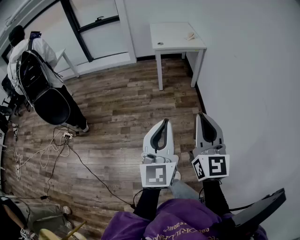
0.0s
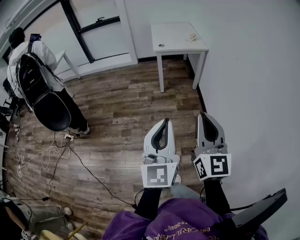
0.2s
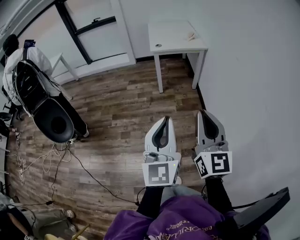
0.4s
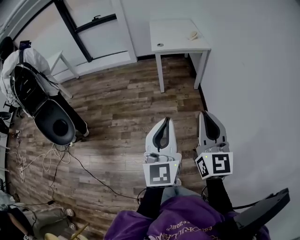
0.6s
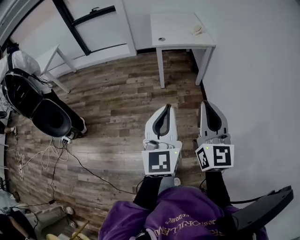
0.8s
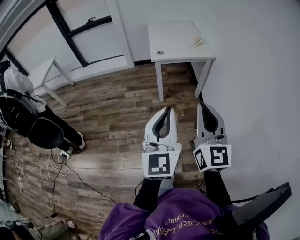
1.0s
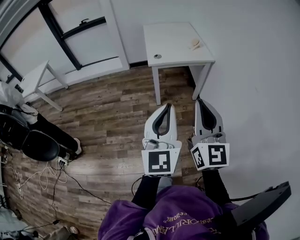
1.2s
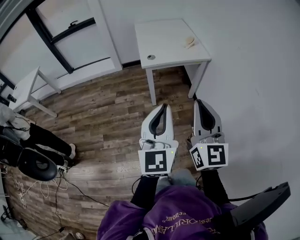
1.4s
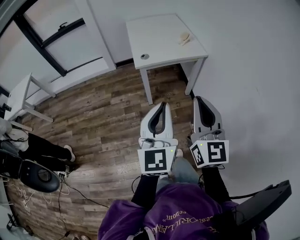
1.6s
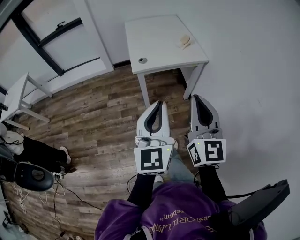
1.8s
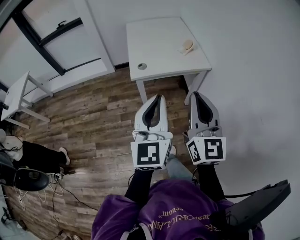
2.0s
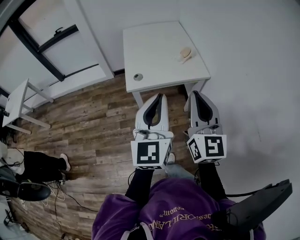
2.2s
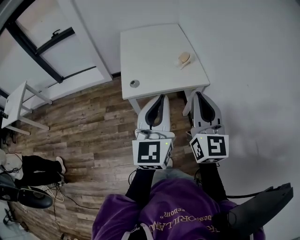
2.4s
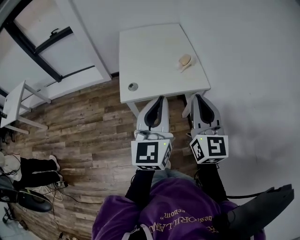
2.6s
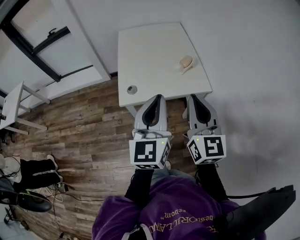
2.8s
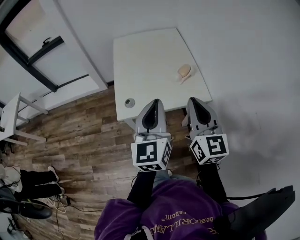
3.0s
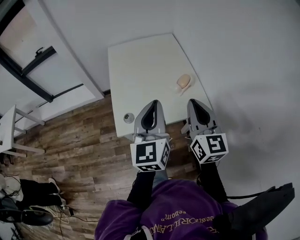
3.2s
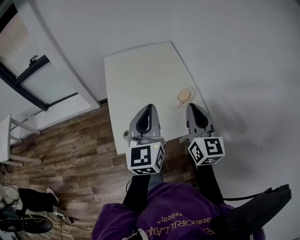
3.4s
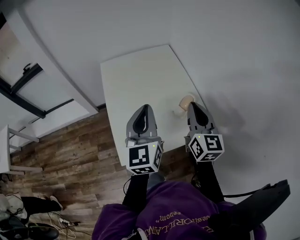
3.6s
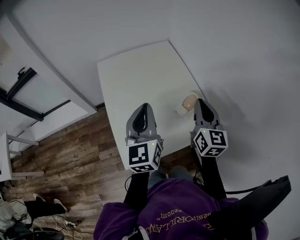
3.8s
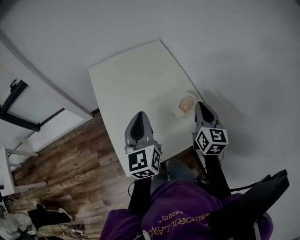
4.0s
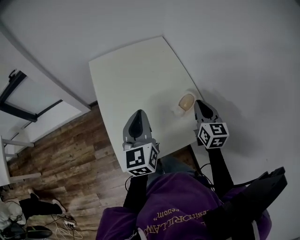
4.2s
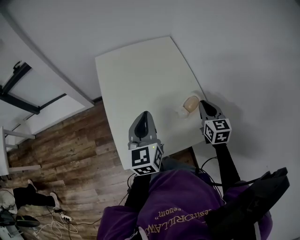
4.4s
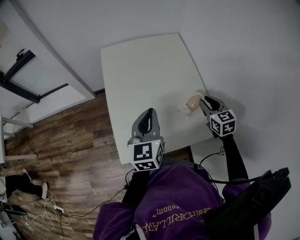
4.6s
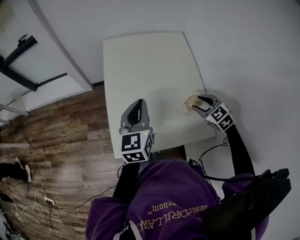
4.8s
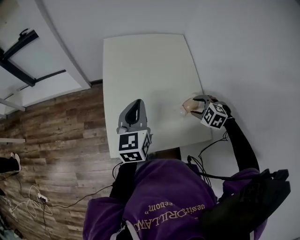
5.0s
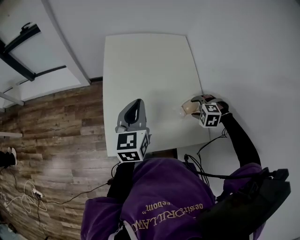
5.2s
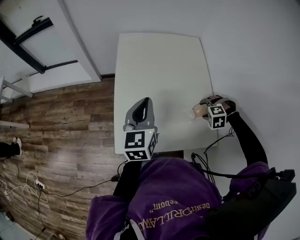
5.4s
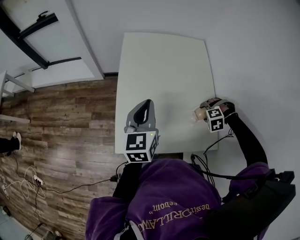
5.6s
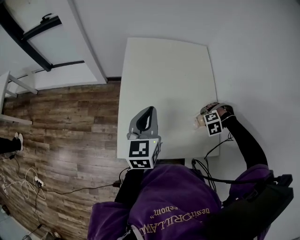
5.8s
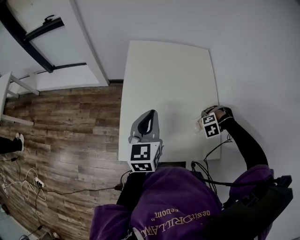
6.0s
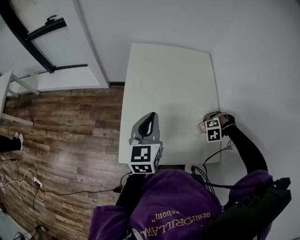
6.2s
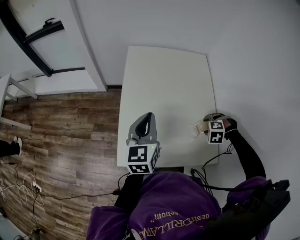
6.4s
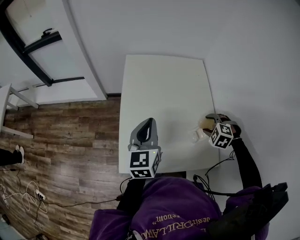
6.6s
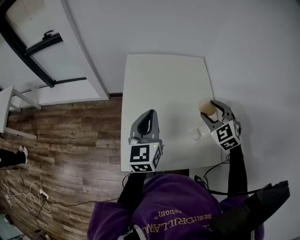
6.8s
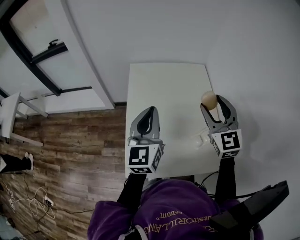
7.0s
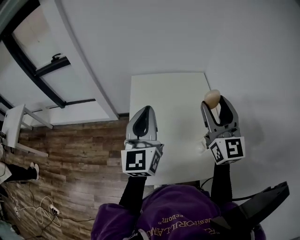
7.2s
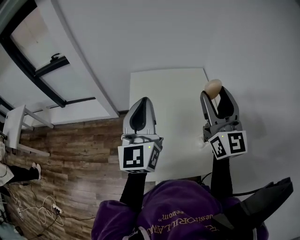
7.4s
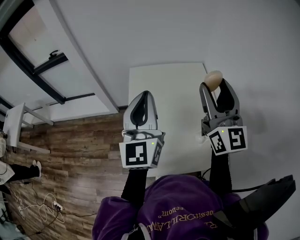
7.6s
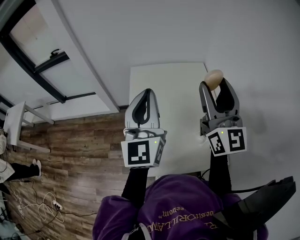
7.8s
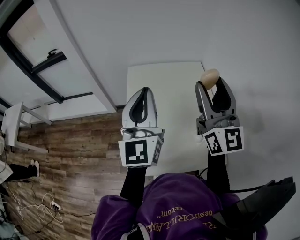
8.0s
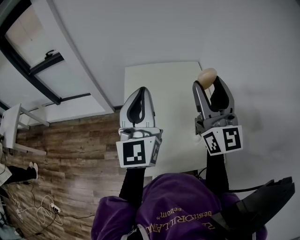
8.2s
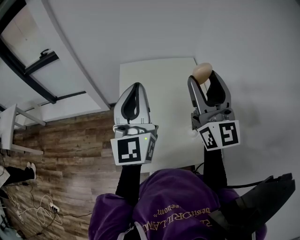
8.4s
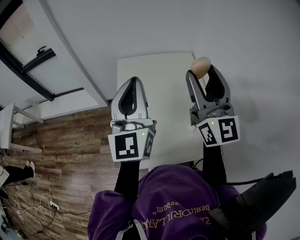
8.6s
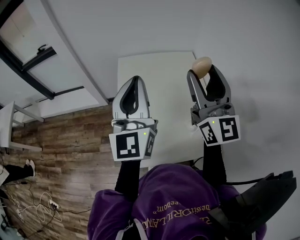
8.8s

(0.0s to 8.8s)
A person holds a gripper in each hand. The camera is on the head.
0.0s - 1.4s: The pair of grippers is taken forward, approximately 40 cm.
1.4s - 3.0s: Both grippers are carried forward, approximately 50 cm.
3.0s - 4.4s: The grippers both shift forward by some 30 cm. The right gripper turns by about 30 degrees.
4.4s - 5.8s: The left gripper moves some 5 cm. Meanwhile the right gripper goes some 15 cm downward, tips its fingers downward by roughly 50 degrees, and opens its fingers.
5.8s - 7.4s: The left gripper travels upward by some 20 cm, and changes its angle by roughly 30 degrees. Meanwhile the right gripper is displaced upward by about 40 cm, and angles its fingers upward, by roughly 100 degrees.
7.4s - 8.8s: The grippers make only small movements.

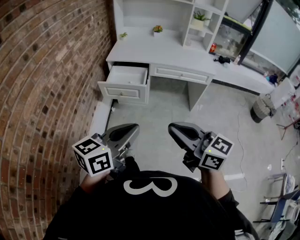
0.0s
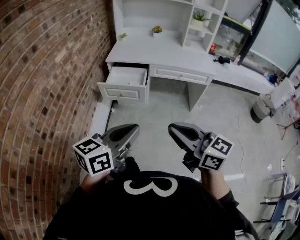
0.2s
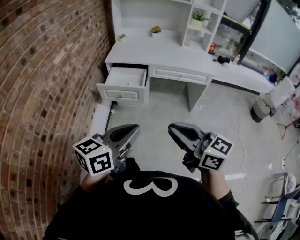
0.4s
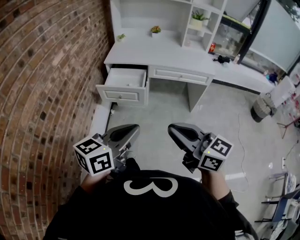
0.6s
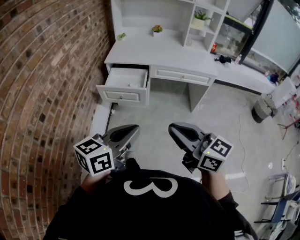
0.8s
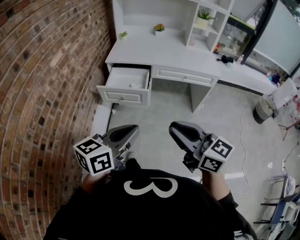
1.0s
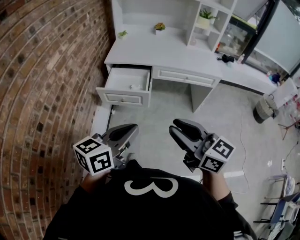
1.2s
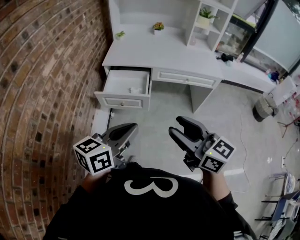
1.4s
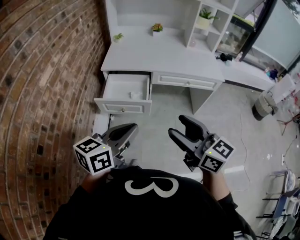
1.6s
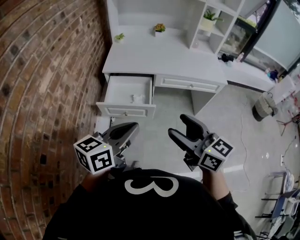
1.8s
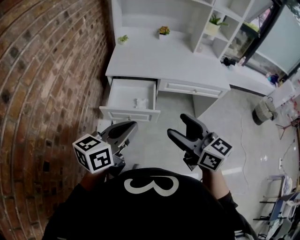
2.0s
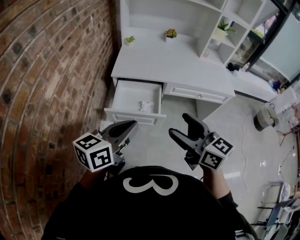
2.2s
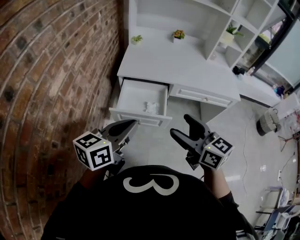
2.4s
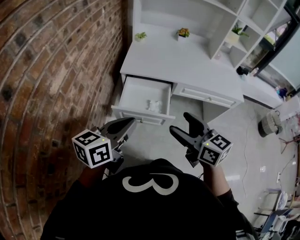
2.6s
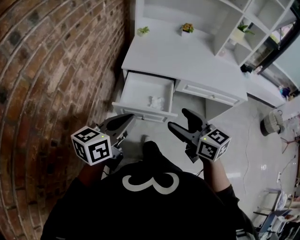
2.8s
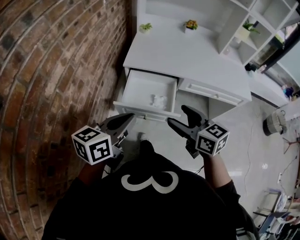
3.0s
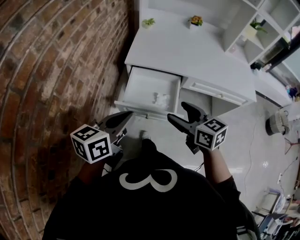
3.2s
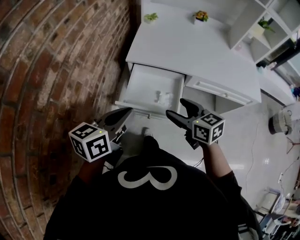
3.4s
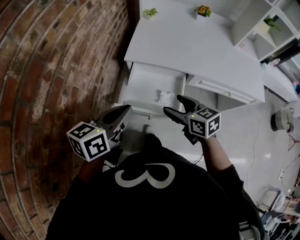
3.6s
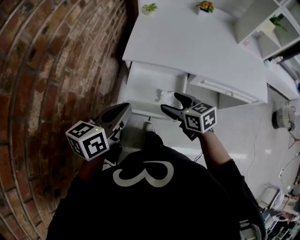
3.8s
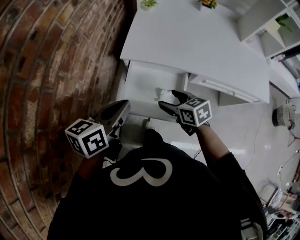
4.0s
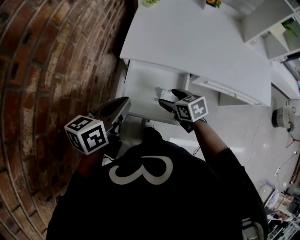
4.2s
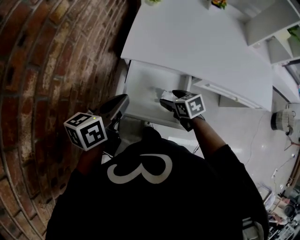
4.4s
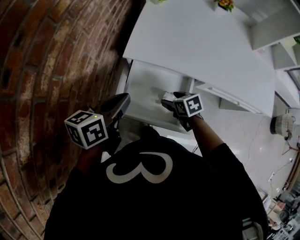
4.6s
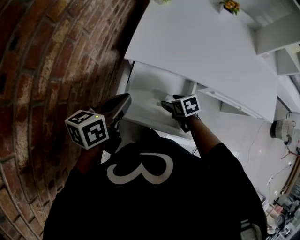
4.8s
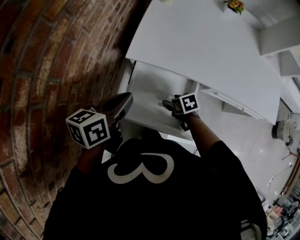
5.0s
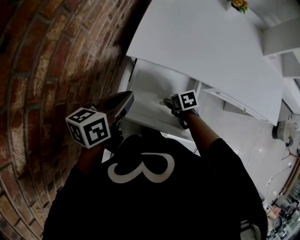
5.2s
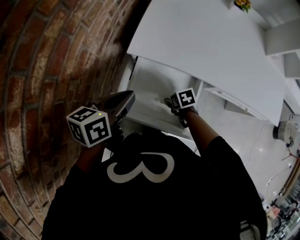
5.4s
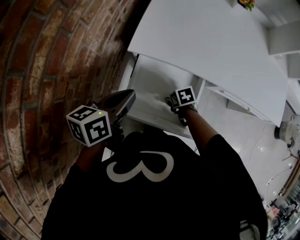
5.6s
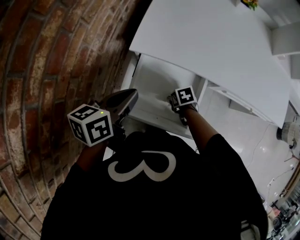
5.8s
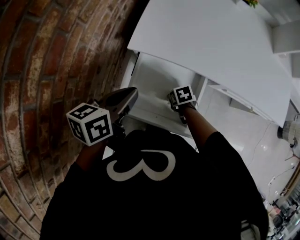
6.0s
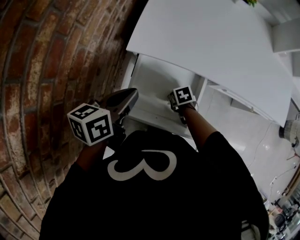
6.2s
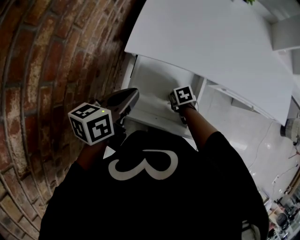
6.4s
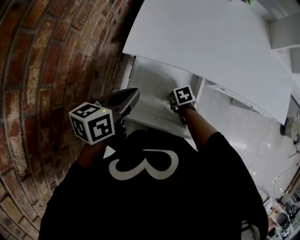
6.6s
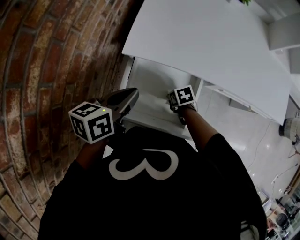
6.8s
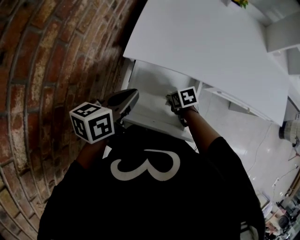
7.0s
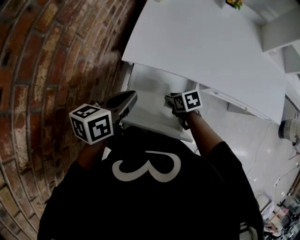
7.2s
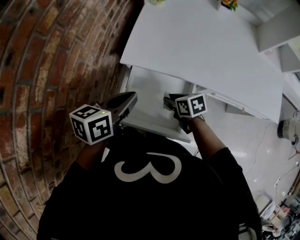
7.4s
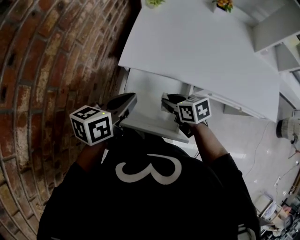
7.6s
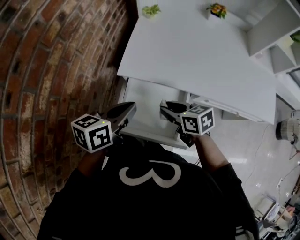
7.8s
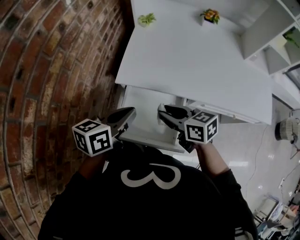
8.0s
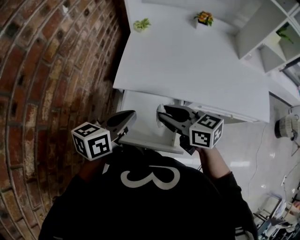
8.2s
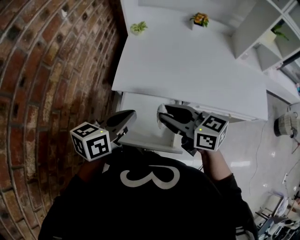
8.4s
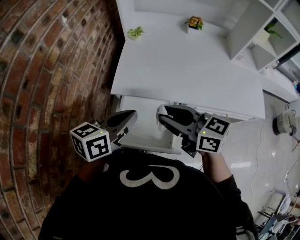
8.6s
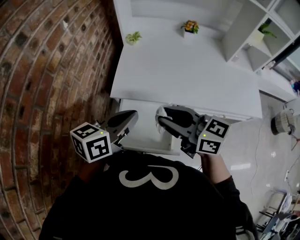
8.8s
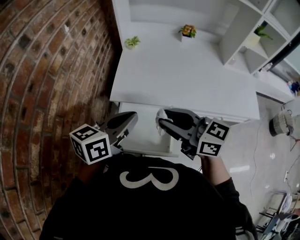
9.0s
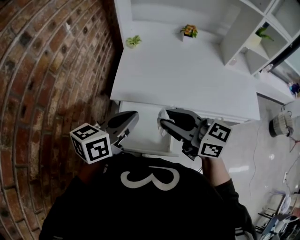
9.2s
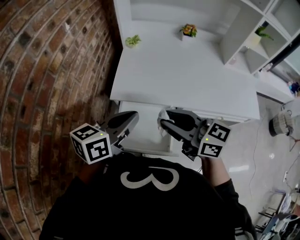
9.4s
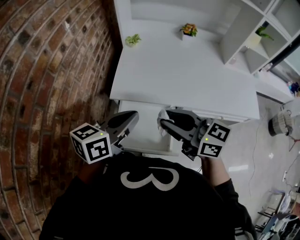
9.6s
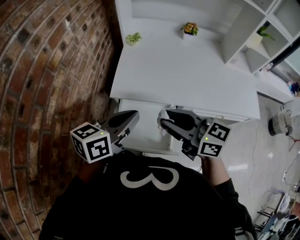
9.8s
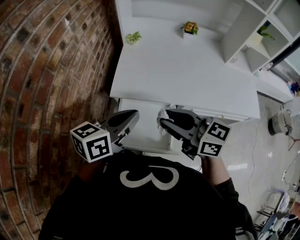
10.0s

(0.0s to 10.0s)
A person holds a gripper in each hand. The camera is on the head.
0.0s - 1.4s: The two grippers go some 15 cm forward. The right gripper opens up.
1.4s - 2.8s: Both grippers move forward and to the left, about 25 cm. The right gripper opens its fingers.
2.8s - 4.2s: The left gripper goes approximately 20 cm forward and downward. The right gripper heads downward and forward, covering approximately 35 cm, and changes its angle by roughly 30 degrees.
4.2s - 5.8s: The left gripper moves downward and forward, roughly 10 cm; the right gripper shifts roughly 20 cm downward, and turns by about 30 degrees.
5.8s - 7.2s: The right gripper shifts roughly 10 cm upward.
7.2s - 8.6s: The right gripper moves upward, approximately 35 cm, and tips its fingers upward by some 50 degrees. The left gripper goes about 10 cm upward and to the right.
8.6s - 10.0s: There are only small adjustments of the grippers.

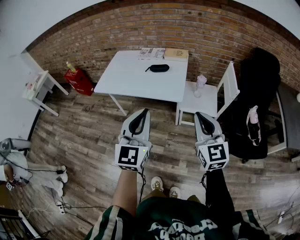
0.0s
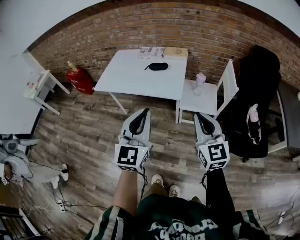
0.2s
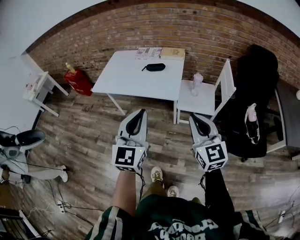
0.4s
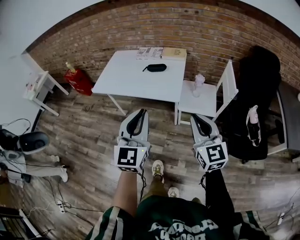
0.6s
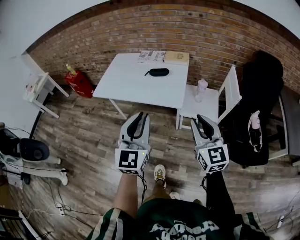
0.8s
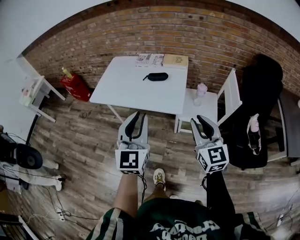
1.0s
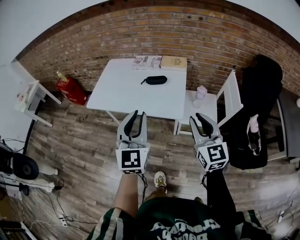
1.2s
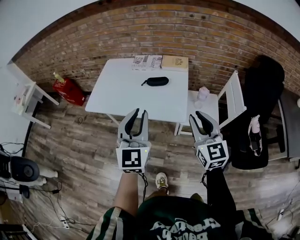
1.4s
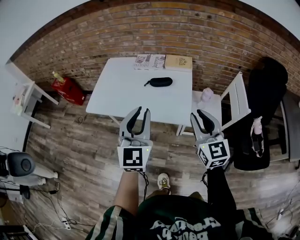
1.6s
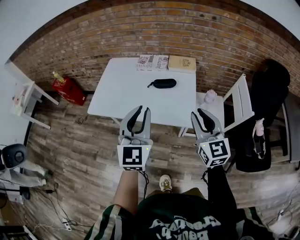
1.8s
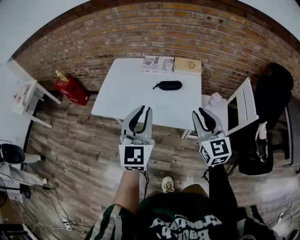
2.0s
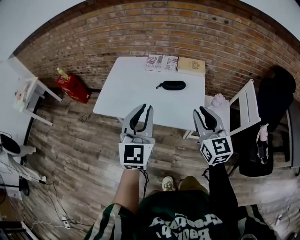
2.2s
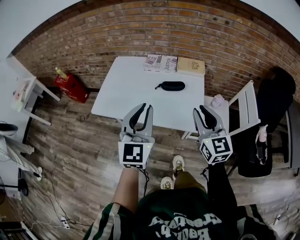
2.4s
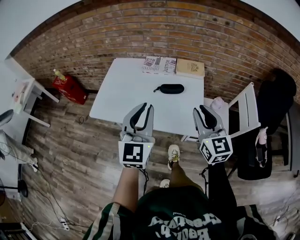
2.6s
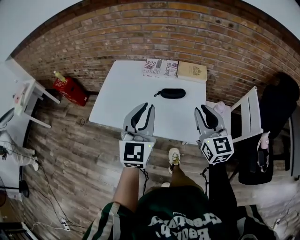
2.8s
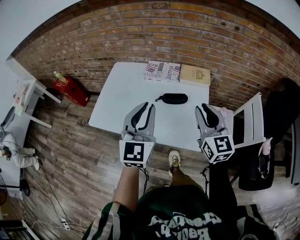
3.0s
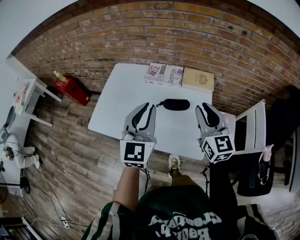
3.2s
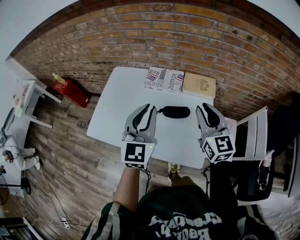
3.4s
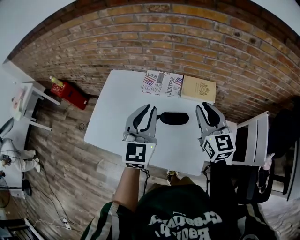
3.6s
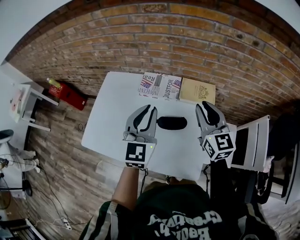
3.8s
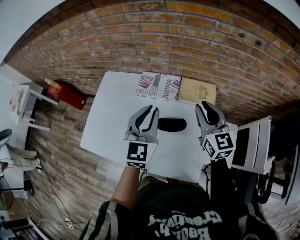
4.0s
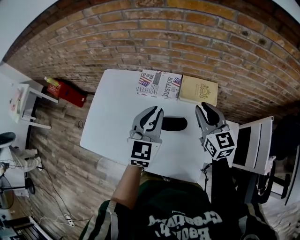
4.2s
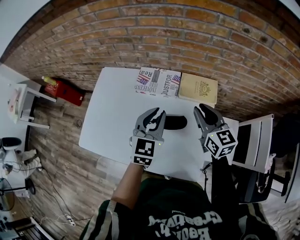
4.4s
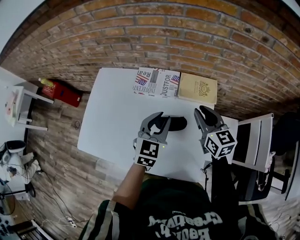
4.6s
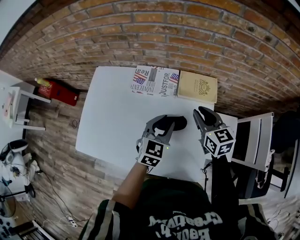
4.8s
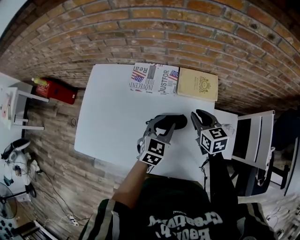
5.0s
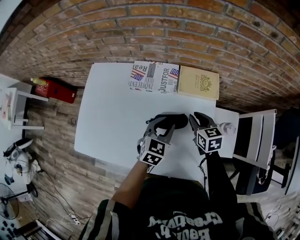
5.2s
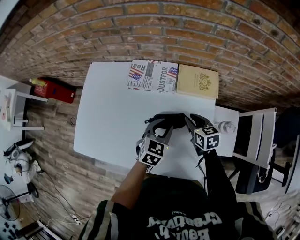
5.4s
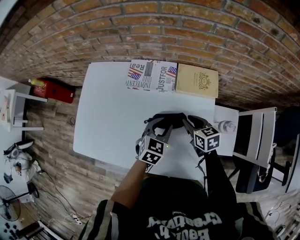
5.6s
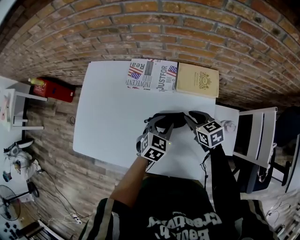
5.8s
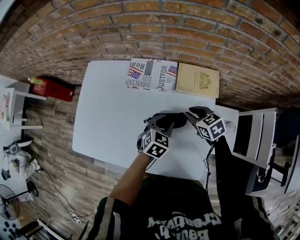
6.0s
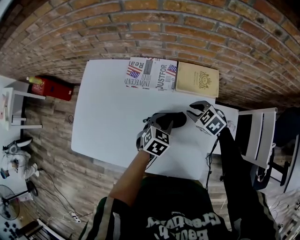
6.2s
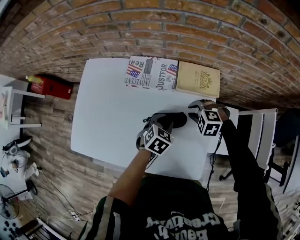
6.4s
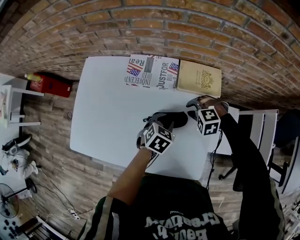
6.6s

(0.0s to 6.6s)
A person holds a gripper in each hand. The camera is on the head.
0.0s - 1.6s: Both grippers move forward, roughly 25 cm. The right gripper opens up.
1.6s - 3.2s: The two grippers go about 25 cm forward.
3.2s - 5.0s: The left gripper moves downward, forward and to the right, some 30 cm, and tips its fingers downward by roughly 30 degrees, while the right gripper is displaced downward and forward by approximately 30 cm, and changes its angle by about 30 degrees.
5.0s - 6.6s: The two grippers go roughly 10 cm downward. The left gripper changes its angle by some 20 degrees, while the right gripper twists some 80 degrees counterclockwise, seen from behind.
